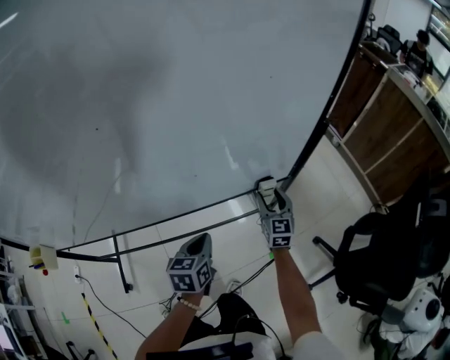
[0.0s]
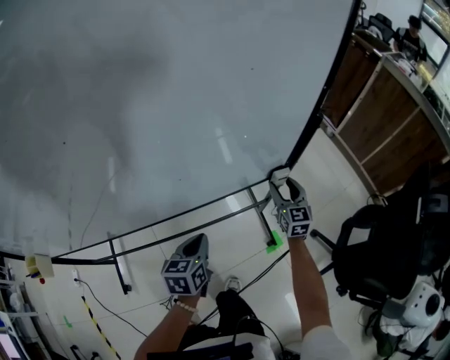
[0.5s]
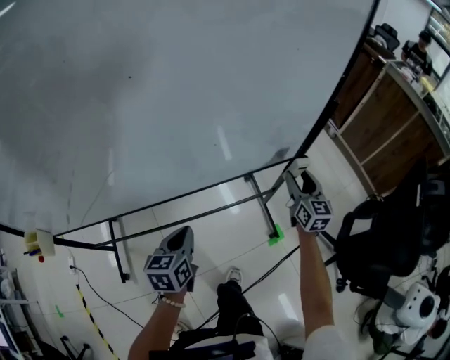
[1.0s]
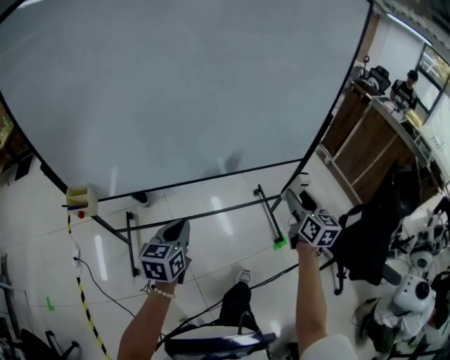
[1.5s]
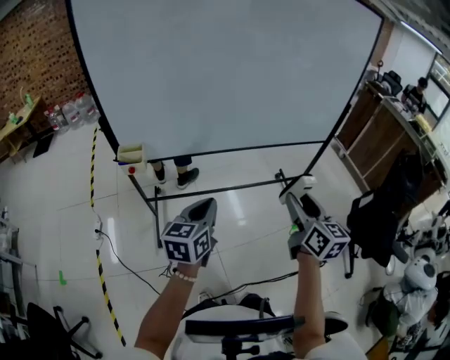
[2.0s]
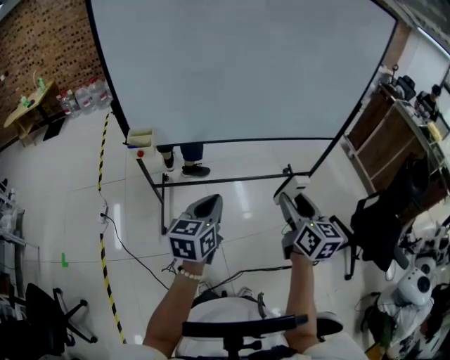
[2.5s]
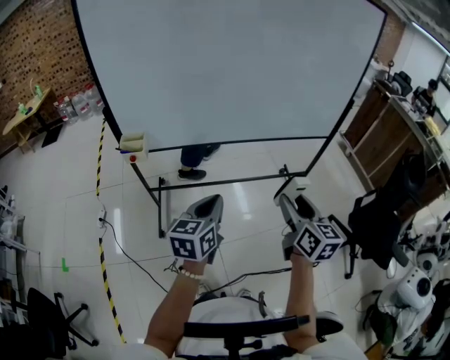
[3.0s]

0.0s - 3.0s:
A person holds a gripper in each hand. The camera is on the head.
0.0s - 1.5s: The right gripper heads backward and upward, covering roughly 40 cm; the left gripper goes roughly 40 cm backward, to the left and upward.
1.5s - 3.0s: The right gripper moves backward and to the left, roughly 35 cm; the left gripper goes roughly 20 cm backward.

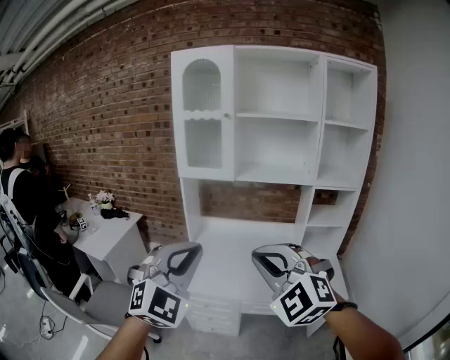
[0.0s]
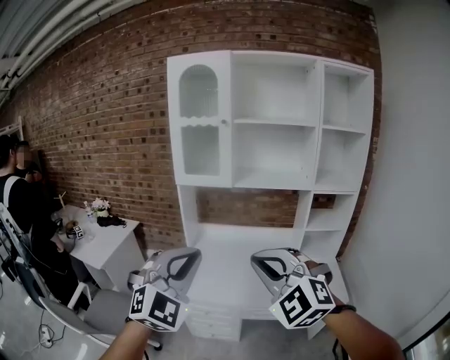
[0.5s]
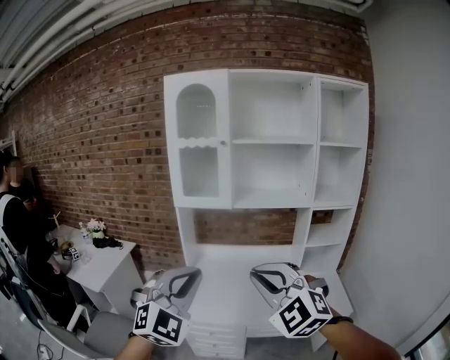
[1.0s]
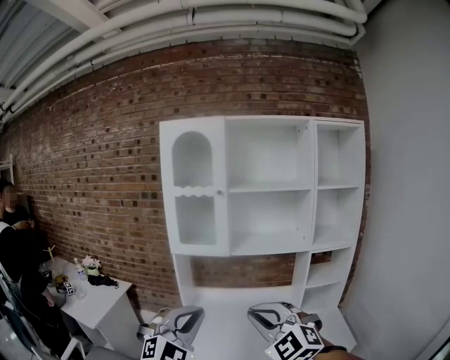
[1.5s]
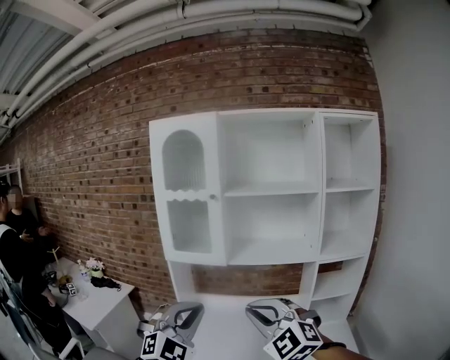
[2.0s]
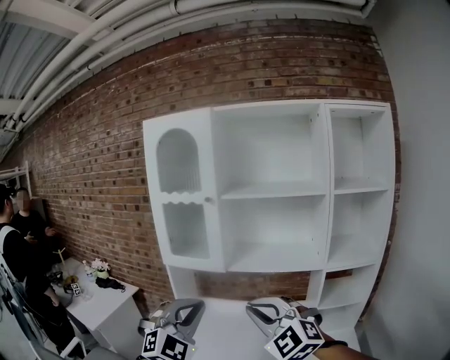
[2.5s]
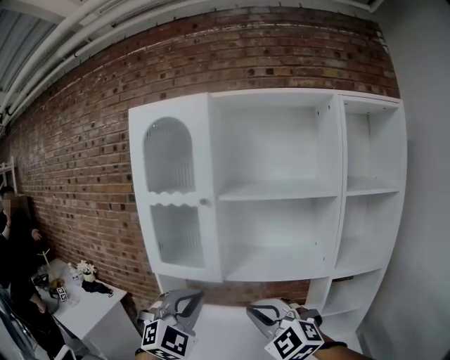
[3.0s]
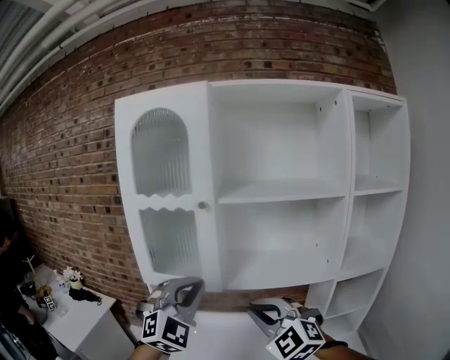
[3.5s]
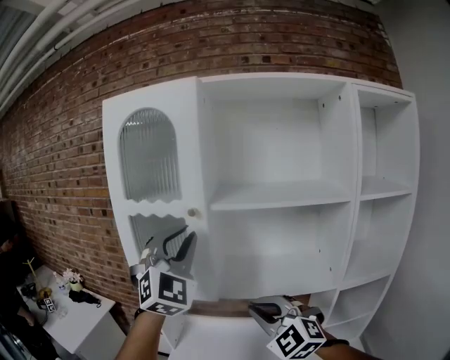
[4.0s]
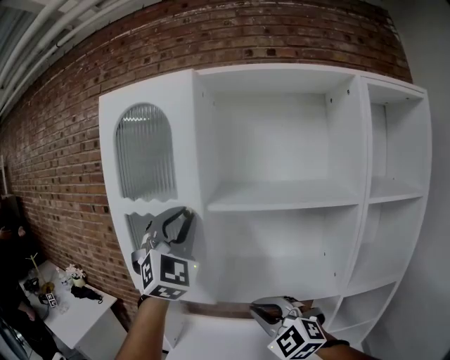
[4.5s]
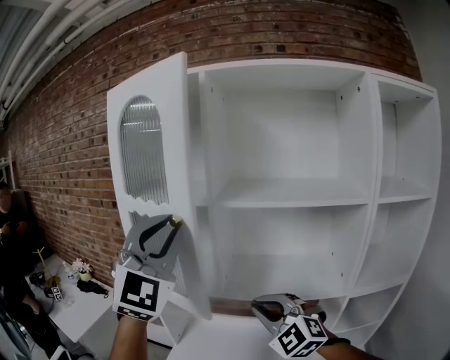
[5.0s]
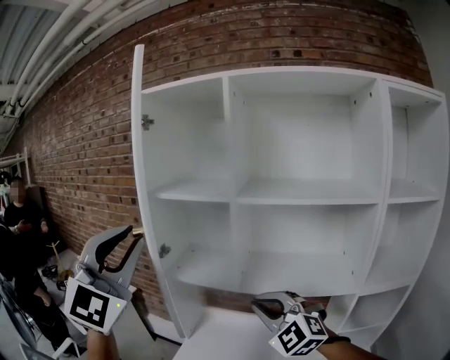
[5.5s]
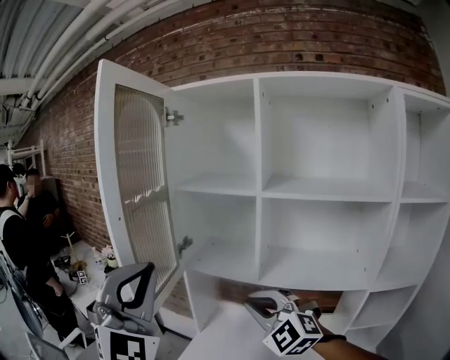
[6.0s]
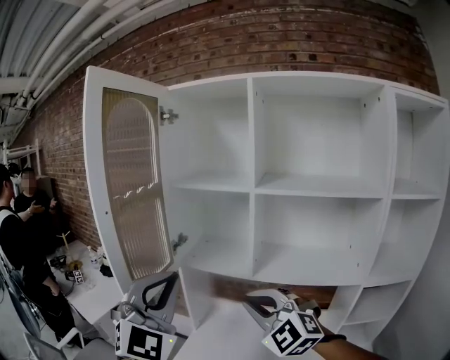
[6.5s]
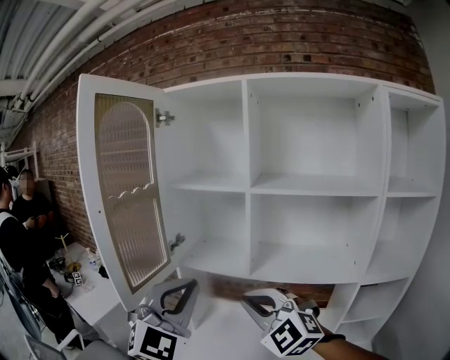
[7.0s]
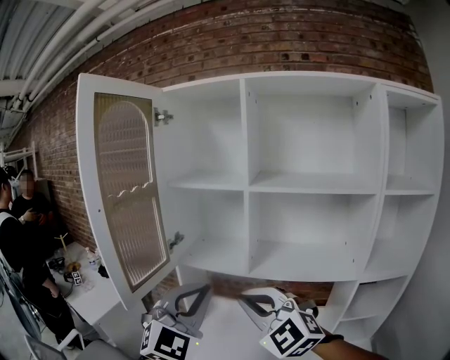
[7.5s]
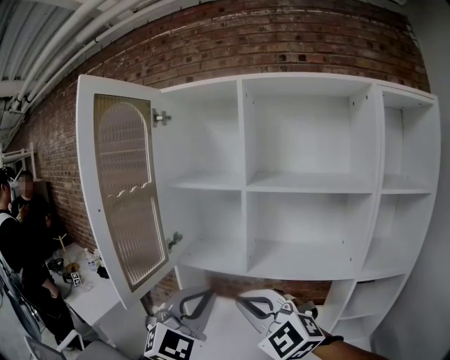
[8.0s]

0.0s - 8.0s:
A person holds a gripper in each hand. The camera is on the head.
0.0s - 2.0s: Both grippers travel together forward, approximately 20 cm.
2.0s - 4.0s: The left gripper moves forward and upward, approximately 40 cm; the right gripper goes some 30 cm forward.
4.0s - 6.0s: The right gripper heads to the left, covering about 10 cm. Meanwhile the left gripper goes roughly 25 cm backward and to the left, and swivels approximately 30 degrees.
6.0s - 8.0s: The left gripper moves downward and to the right, some 20 cm, and changes its angle by about 50 degrees. Meanwhile the right gripper goes some 5 cm backward.

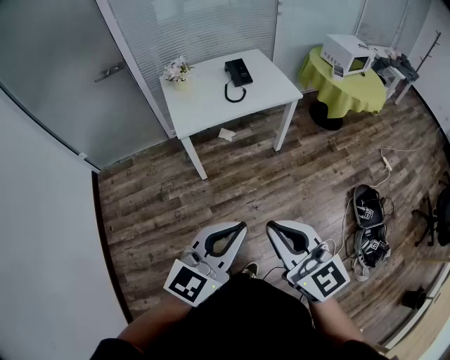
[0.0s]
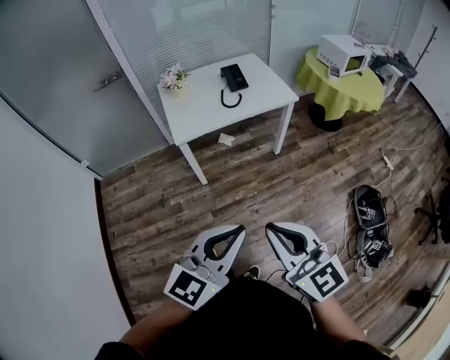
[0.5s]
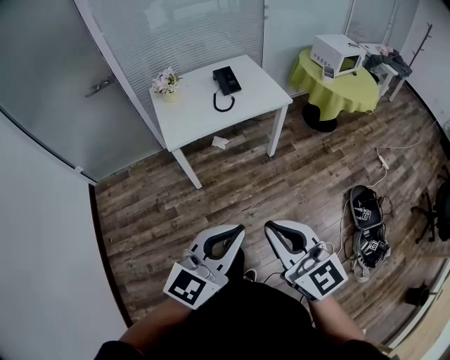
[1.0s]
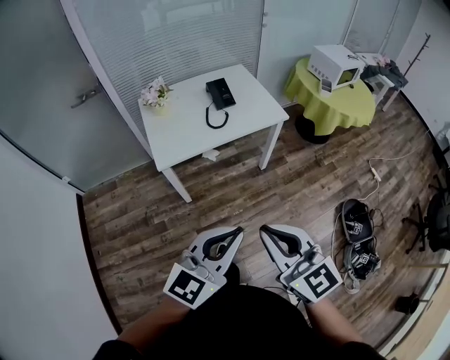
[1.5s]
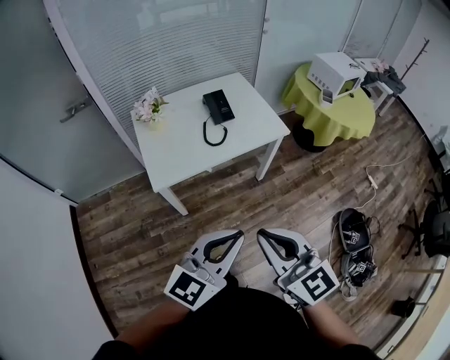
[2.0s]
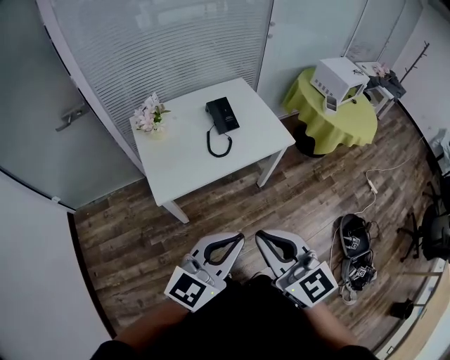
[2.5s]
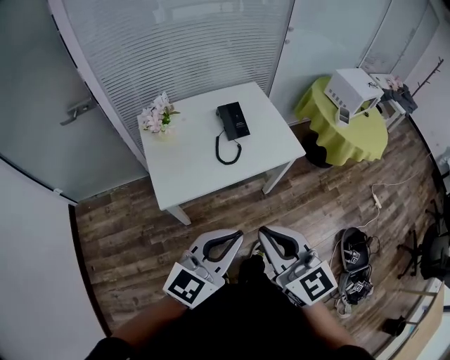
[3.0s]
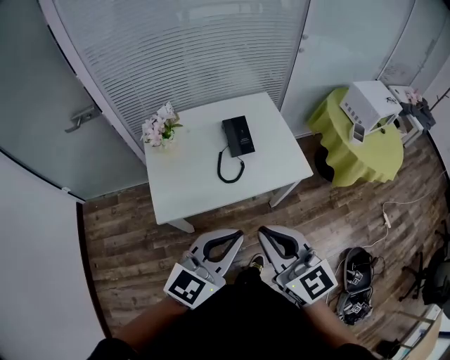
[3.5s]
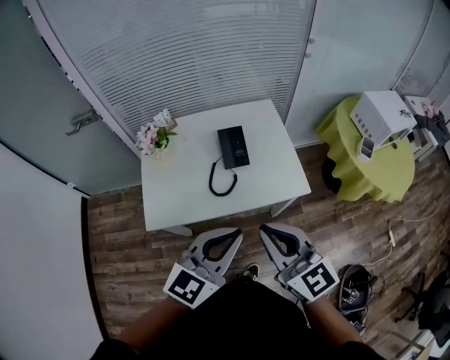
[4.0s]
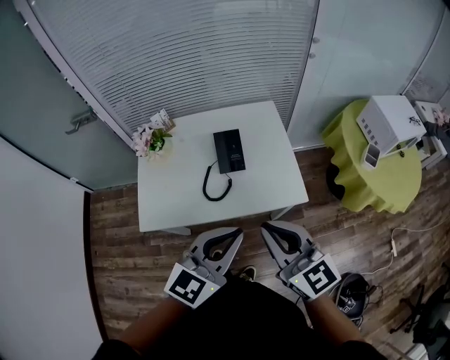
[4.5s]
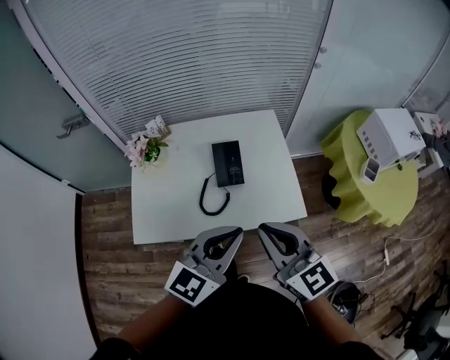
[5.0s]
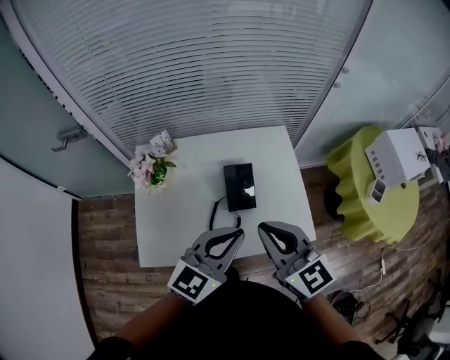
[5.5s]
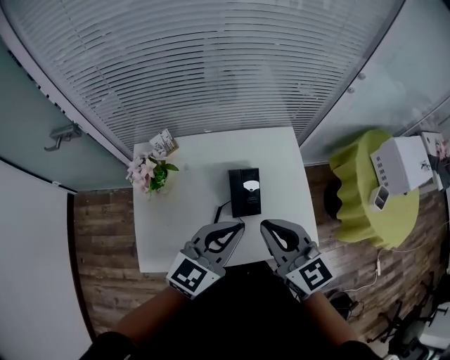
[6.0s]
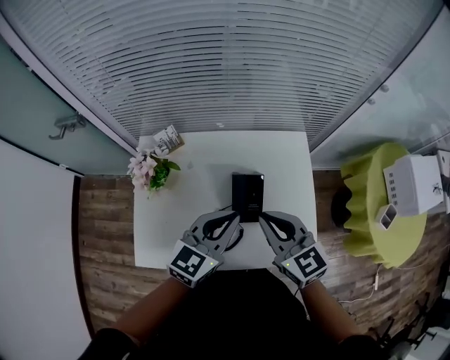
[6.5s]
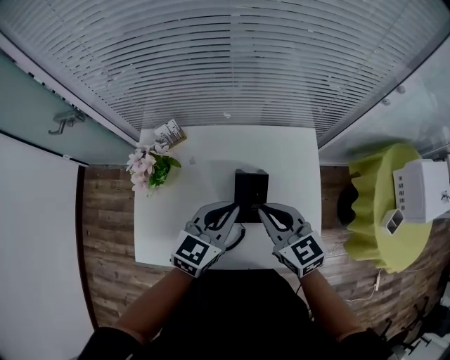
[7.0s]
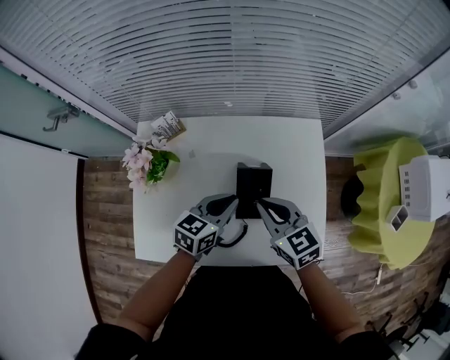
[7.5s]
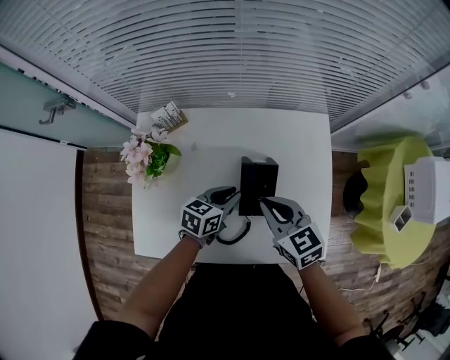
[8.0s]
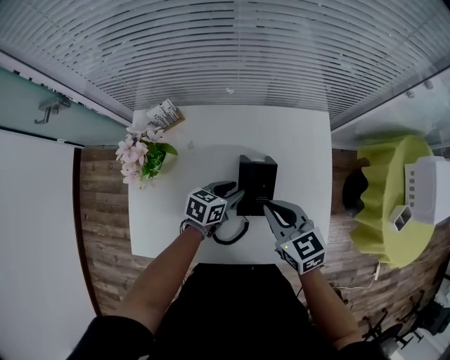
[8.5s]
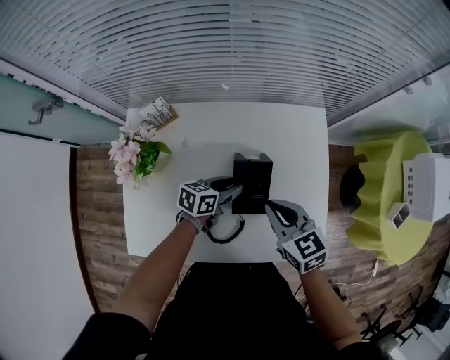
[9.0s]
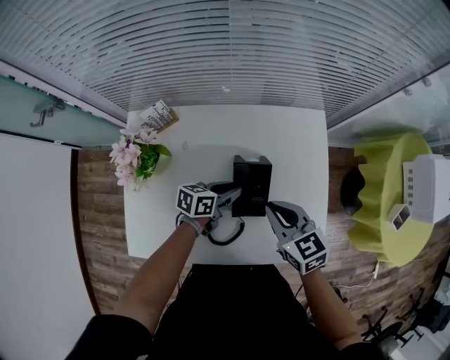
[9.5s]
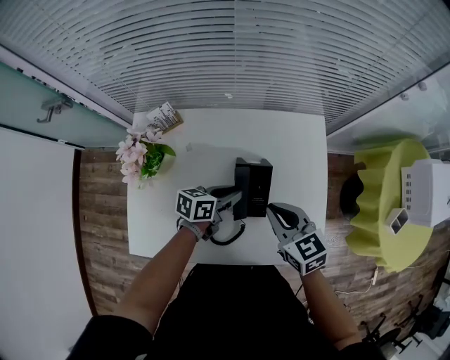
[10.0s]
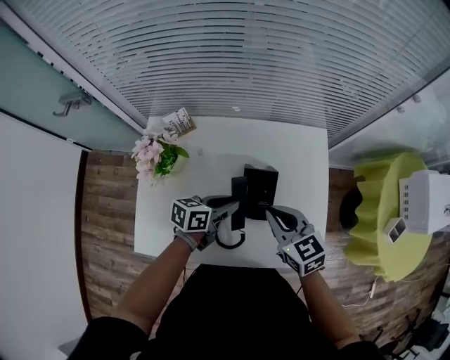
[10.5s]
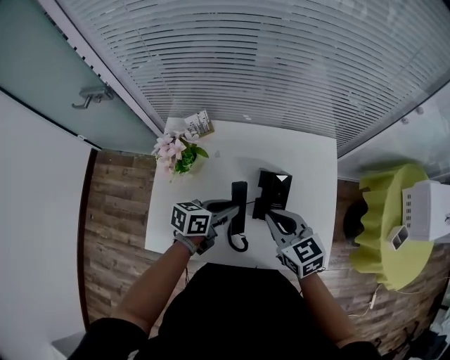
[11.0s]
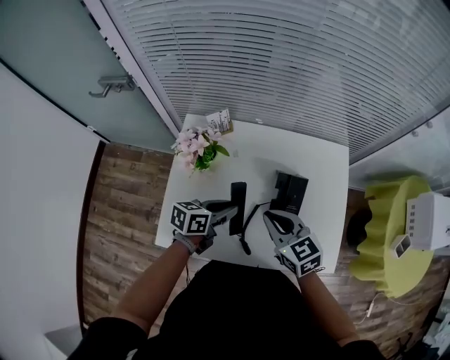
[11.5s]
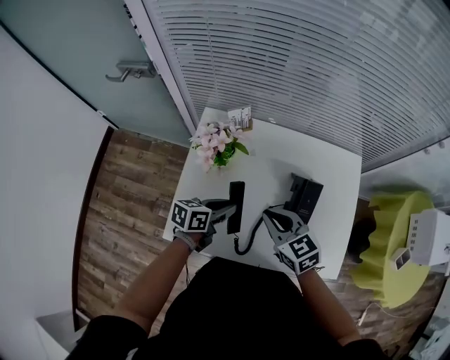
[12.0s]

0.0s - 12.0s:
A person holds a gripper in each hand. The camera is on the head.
0.0s - 2.0s: Both grippers move forward, about 25 cm.
2.0s - 4.0s: The two grippers go some 30 cm forward.
4.0s - 6.0s: The grippers both shift forward by roughly 30 cm.
6.0s - 8.0s: Both grippers travel together downward and forward, about 25 cm. The left gripper swivels approximately 40 degrees, while the right gripper turns by about 20 degrees.
8.0s - 10.0s: There are only small adjustments of the grippers.
10.0s - 12.0s: The left gripper is displaced to the left and backward by about 20 cm. Meanwhile the right gripper is displaced to the left by about 20 cm.

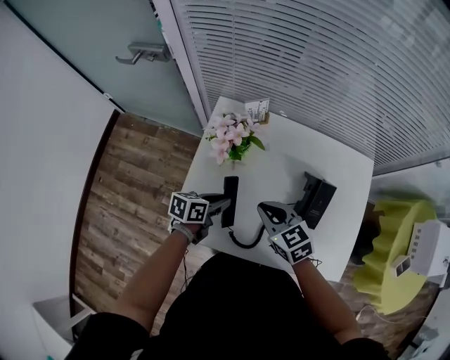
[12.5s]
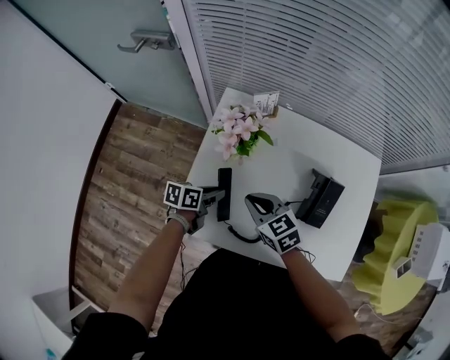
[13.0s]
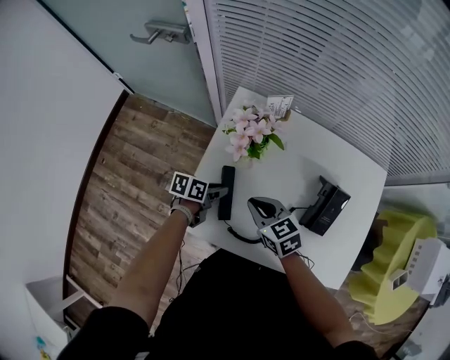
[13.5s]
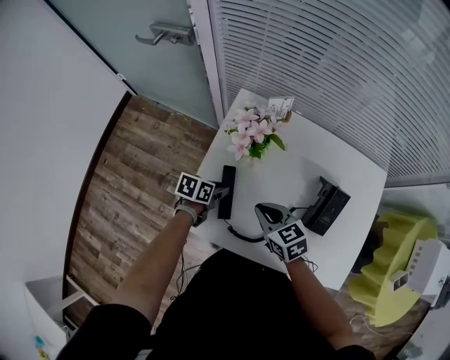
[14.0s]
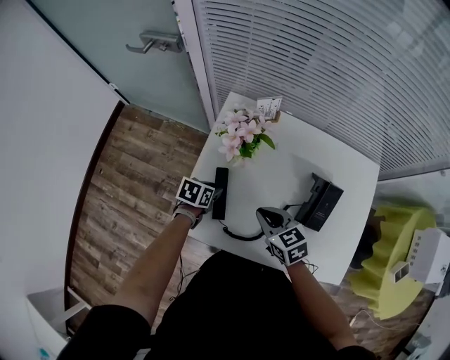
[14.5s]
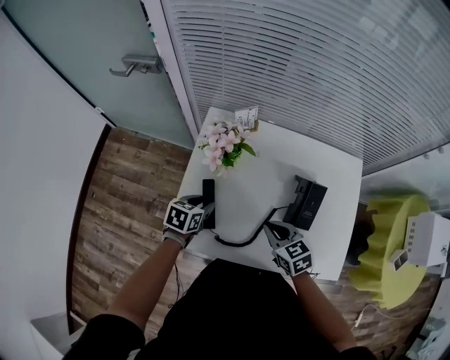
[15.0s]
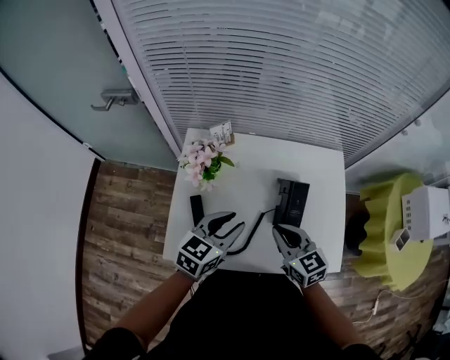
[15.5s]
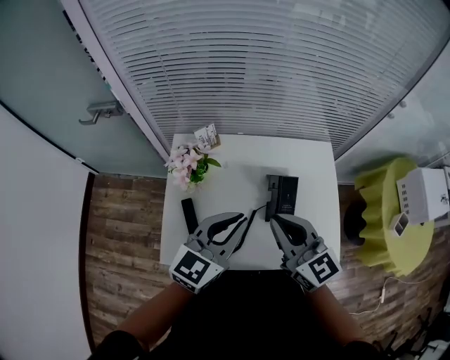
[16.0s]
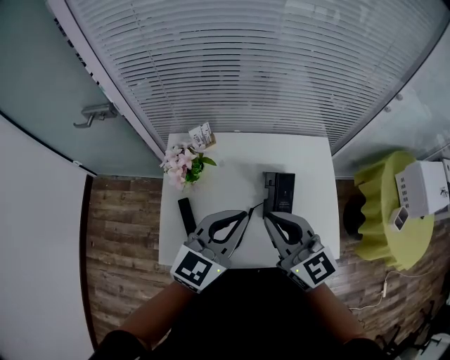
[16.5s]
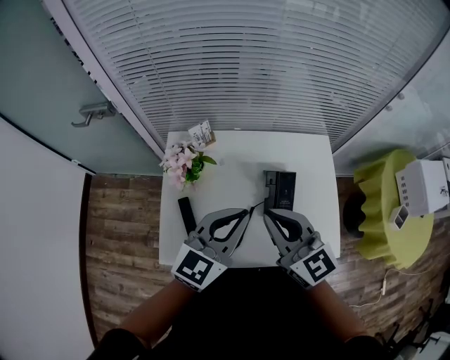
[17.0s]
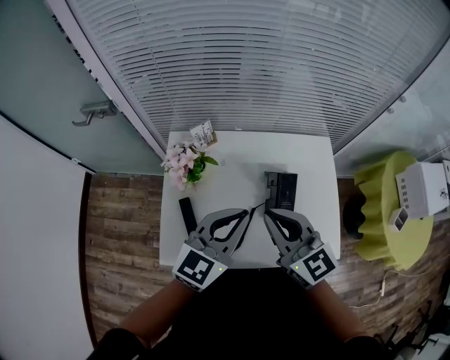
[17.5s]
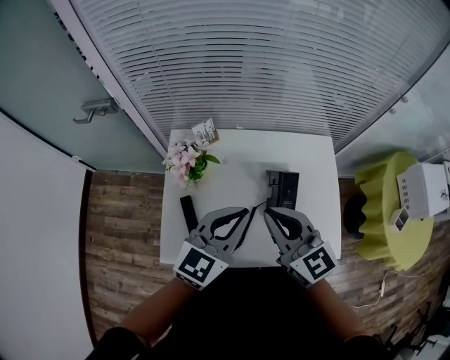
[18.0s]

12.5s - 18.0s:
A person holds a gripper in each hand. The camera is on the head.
12.5s - 14.5s: The left gripper is displaced to the left and downward by roughly 10 cm, and changes its angle by approximately 20 degrees.
14.5s - 16.0s: Both grippers move upward and to the right, approximately 35 cm. The right gripper angles its fingers upward, by roughly 30 degrees. Meanwhile the left gripper points its fingers roughly 40 degrees further upward, and closes up.
16.0s - 18.0s: The grippers move only a little.
